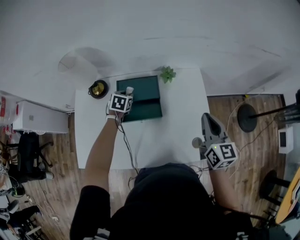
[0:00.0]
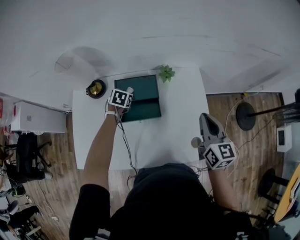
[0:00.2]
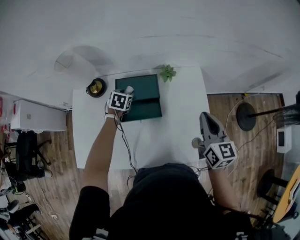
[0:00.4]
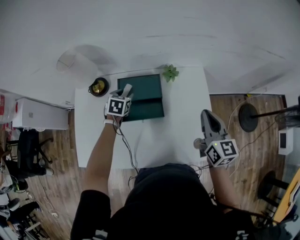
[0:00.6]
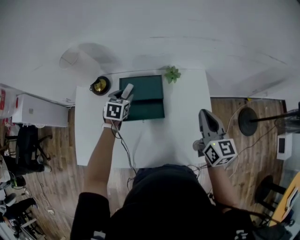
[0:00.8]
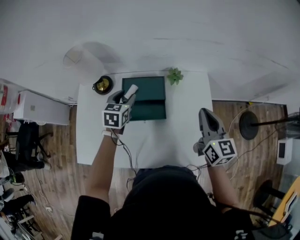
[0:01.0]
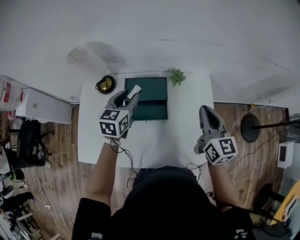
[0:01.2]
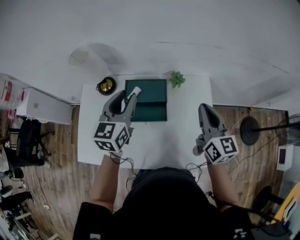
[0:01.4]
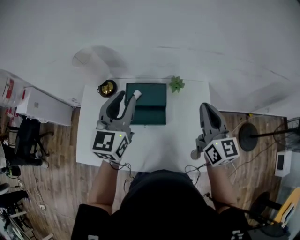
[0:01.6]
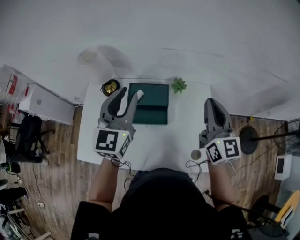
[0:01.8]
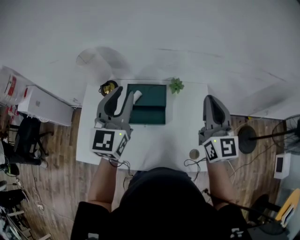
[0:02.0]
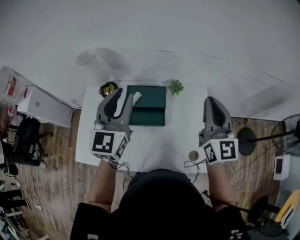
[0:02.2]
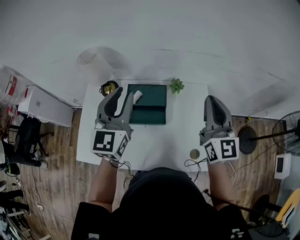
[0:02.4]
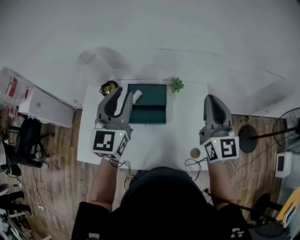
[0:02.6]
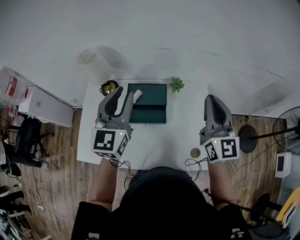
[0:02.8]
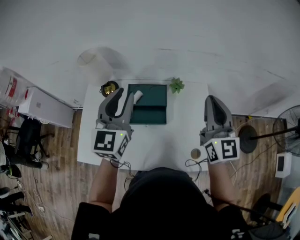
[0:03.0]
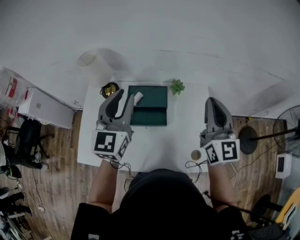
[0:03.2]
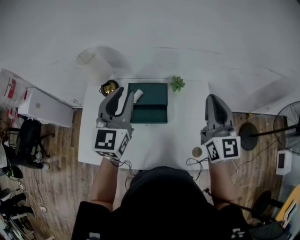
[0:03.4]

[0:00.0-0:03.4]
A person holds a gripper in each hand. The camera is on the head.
0:00.0 to 0:01.6: The right gripper moves upward and forward, roughly 10 cm, while the left gripper goes roughly 30 cm upward, and points its fingers some 50 degrees further upward.
0:01.6 to 0:03.4: The right gripper goes some 5 cm upward.

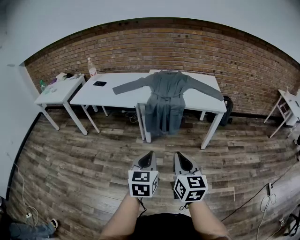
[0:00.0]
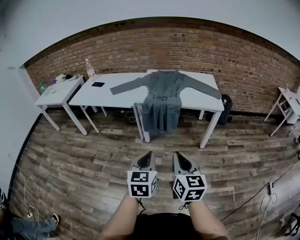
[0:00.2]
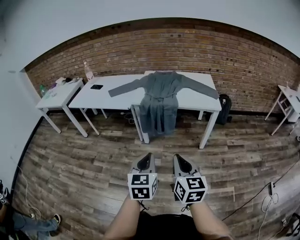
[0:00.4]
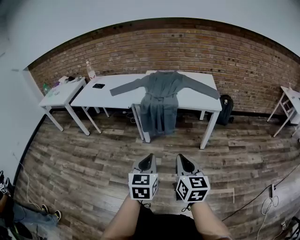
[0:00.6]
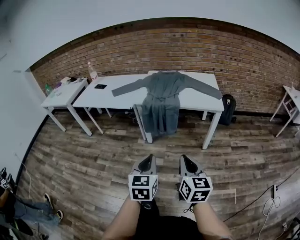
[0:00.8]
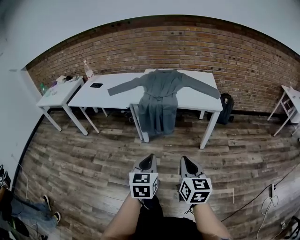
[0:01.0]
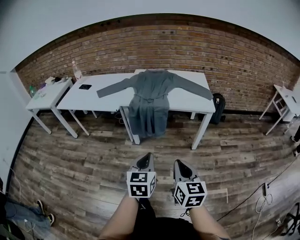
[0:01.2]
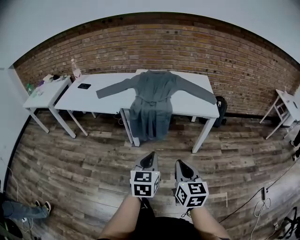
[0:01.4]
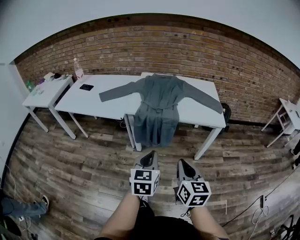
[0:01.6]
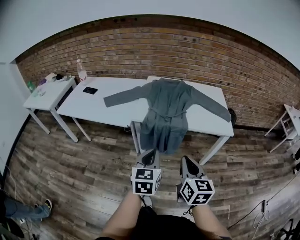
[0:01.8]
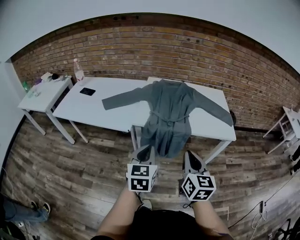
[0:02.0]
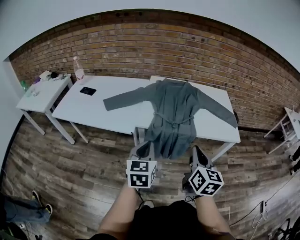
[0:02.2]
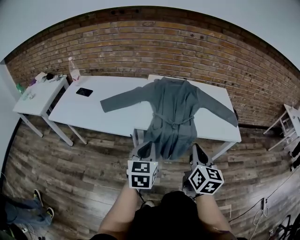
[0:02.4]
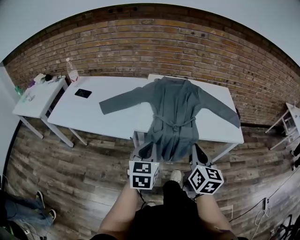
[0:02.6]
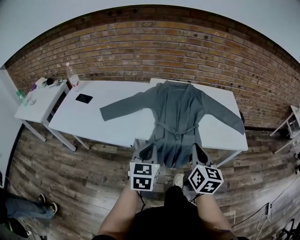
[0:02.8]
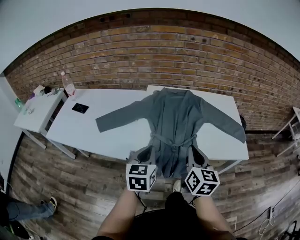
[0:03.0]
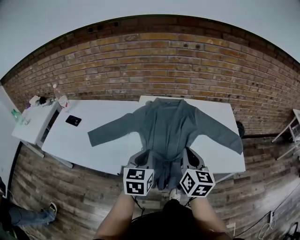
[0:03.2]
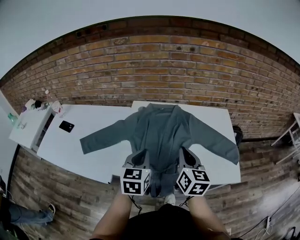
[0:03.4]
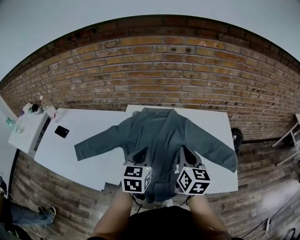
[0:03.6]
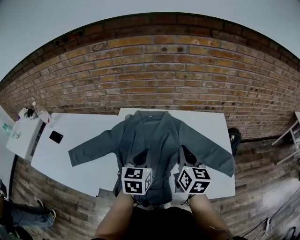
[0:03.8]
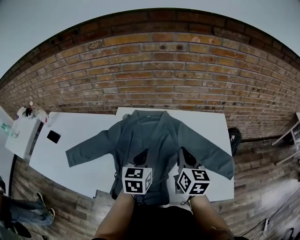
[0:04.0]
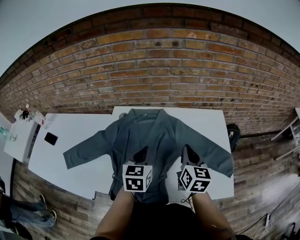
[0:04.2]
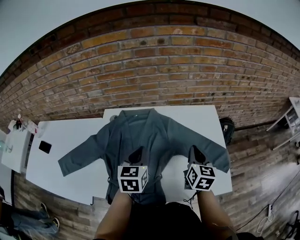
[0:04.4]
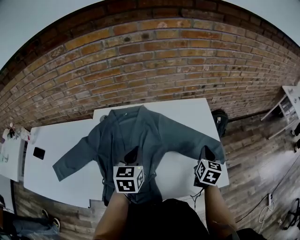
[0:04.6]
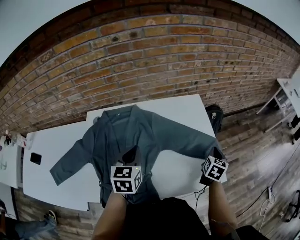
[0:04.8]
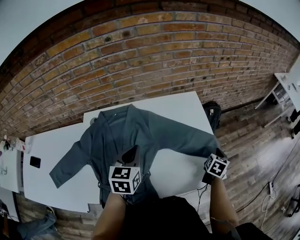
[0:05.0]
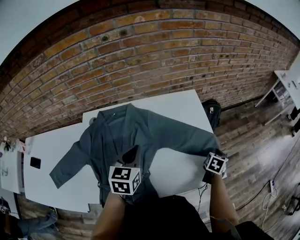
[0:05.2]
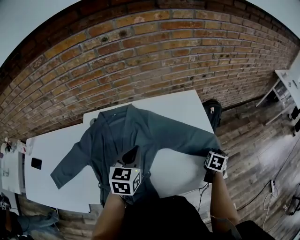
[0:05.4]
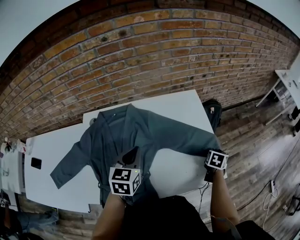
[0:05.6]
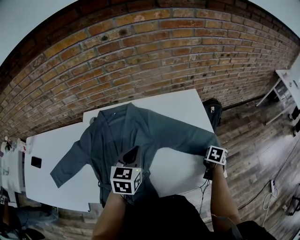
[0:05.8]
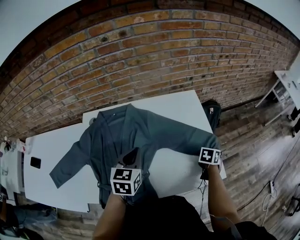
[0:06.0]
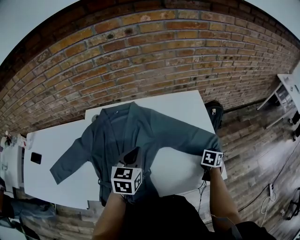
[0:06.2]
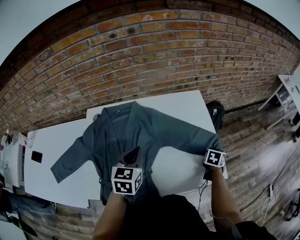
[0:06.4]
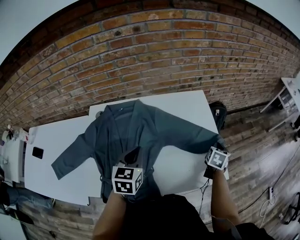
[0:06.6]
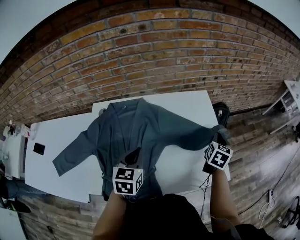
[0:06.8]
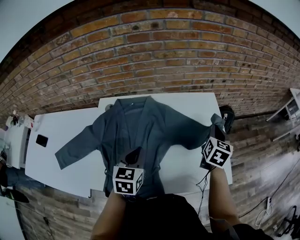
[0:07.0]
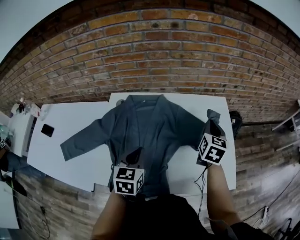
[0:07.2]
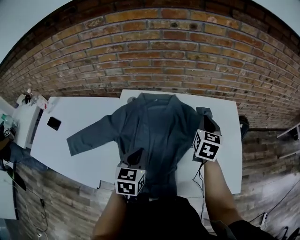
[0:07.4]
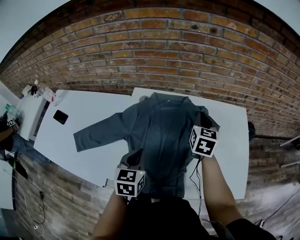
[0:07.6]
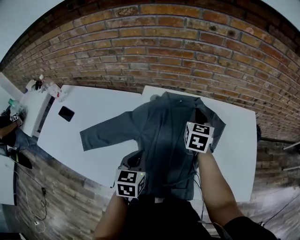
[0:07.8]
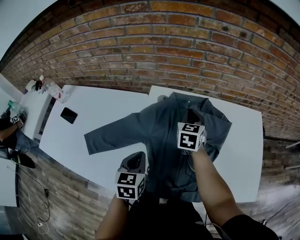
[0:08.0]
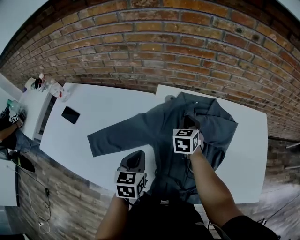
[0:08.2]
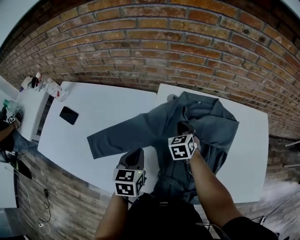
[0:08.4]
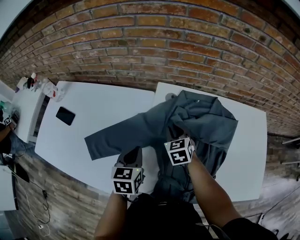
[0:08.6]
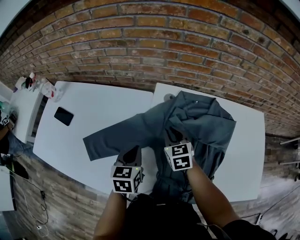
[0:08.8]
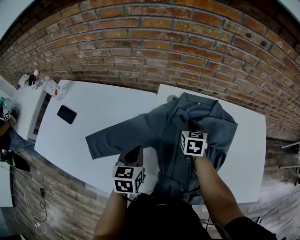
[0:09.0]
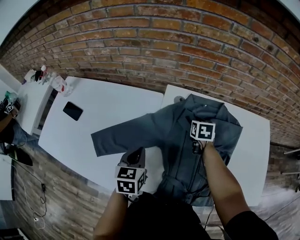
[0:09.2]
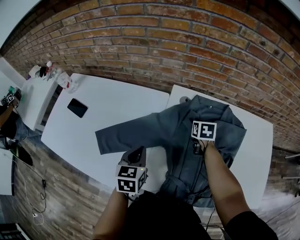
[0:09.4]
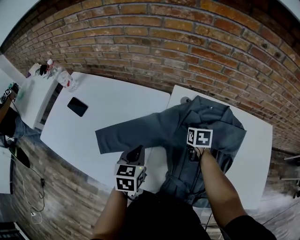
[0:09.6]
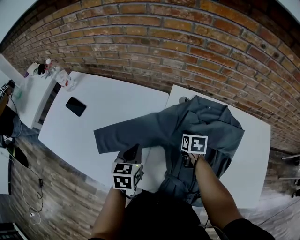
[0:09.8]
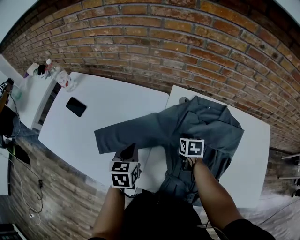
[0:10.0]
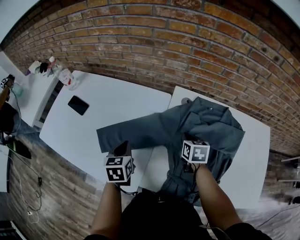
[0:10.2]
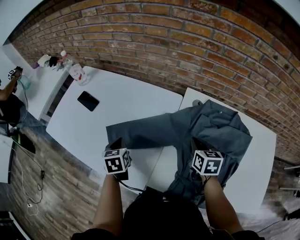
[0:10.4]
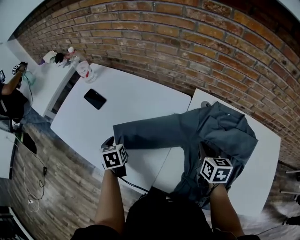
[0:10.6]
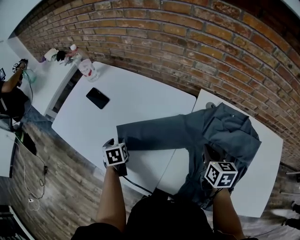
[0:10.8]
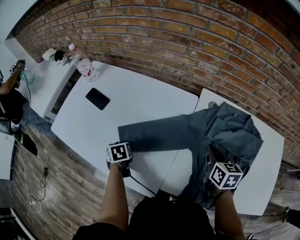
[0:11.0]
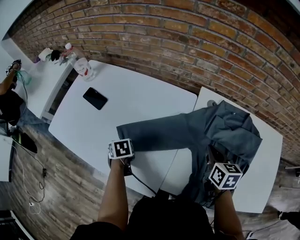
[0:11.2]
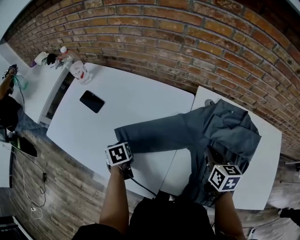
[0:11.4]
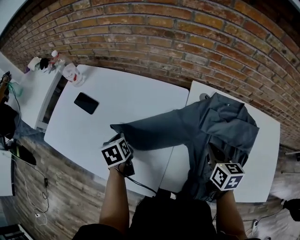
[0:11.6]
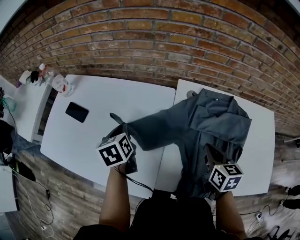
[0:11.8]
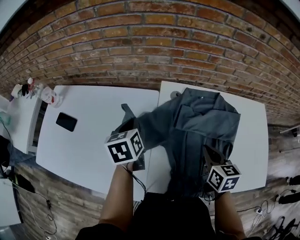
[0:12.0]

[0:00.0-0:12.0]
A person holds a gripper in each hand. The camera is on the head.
0:00.0 to 0:01.6: The left gripper moves forward, about 15 cm. Meanwhile the right gripper goes approximately 15 cm forward and to the right.
0:01.6 to 0:03.0: The right gripper shifts about 35 cm forward. Meanwhile the left gripper shifts about 35 cm forward and to the left.
0:03.0 to 0:04.4: Both grippers move forward and to the right, approximately 35 cm.
0:04.4 to 0:06.0: The right gripper changes place by some 30 cm, tips its fingers downward by roughly 40 degrees, and opens, then closes once more, while the left gripper ends up approximately 5 cm from where it was.
0:06.0 to 0:07.6: The left gripper changes place by approximately 20 cm, and turns by about 20 degrees, while the right gripper shifts by about 40 cm, and angles its fingers upward, by roughly 30 degrees.
0:07.6 to 0:09.0: The right gripper travels to the left and downward by about 25 cm; the left gripper travels to the left by about 20 cm.
0:09.0 to 0:10.4: The left gripper ends up about 20 cm from where it was, and turns by about 30 degrees. Meanwhile the right gripper reaches roughly 5 cm downward, then returns.
0:10.4 to 0:12.0: The left gripper moves to the right, upward and forward, roughly 20 cm, and opens, then closes again. The right gripper goes roughly 10 cm backward, to the right and upward.

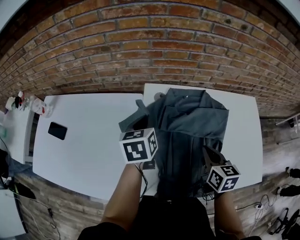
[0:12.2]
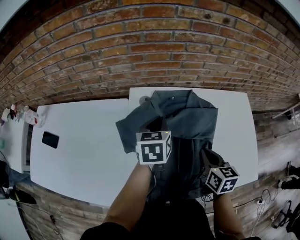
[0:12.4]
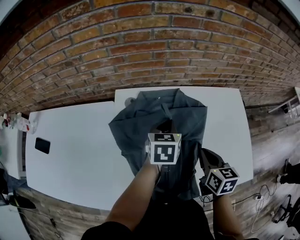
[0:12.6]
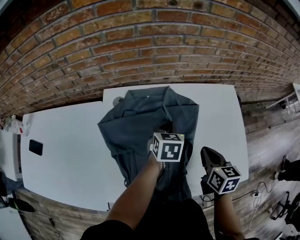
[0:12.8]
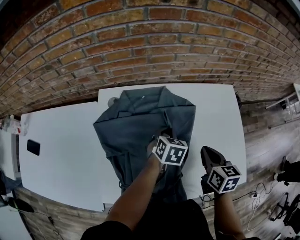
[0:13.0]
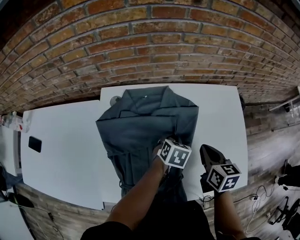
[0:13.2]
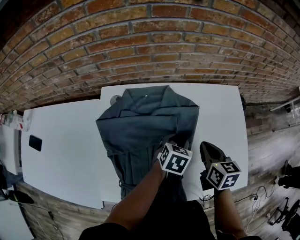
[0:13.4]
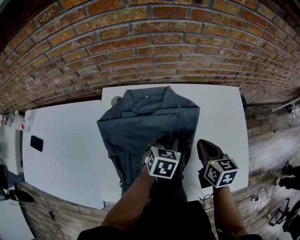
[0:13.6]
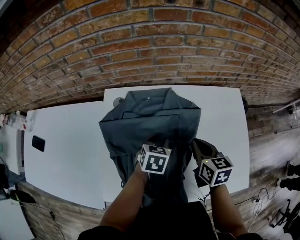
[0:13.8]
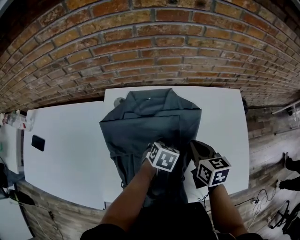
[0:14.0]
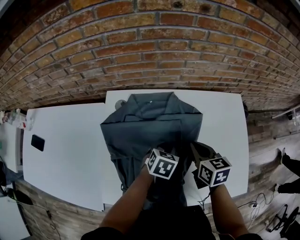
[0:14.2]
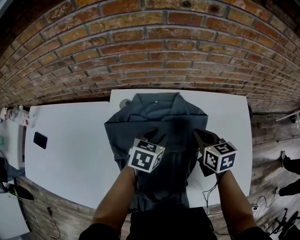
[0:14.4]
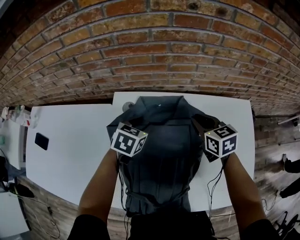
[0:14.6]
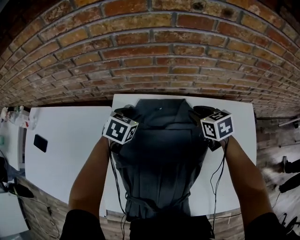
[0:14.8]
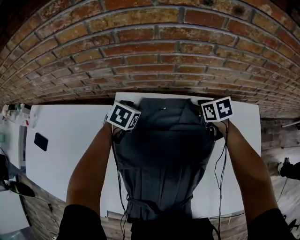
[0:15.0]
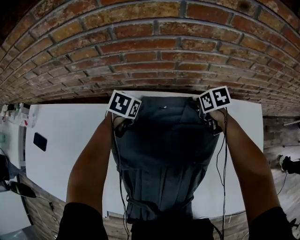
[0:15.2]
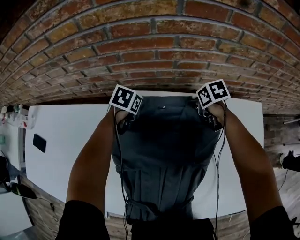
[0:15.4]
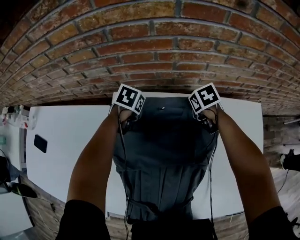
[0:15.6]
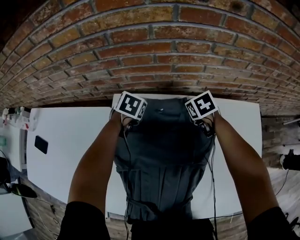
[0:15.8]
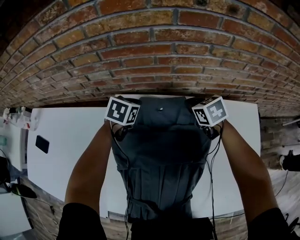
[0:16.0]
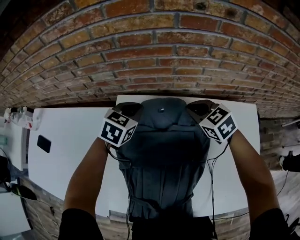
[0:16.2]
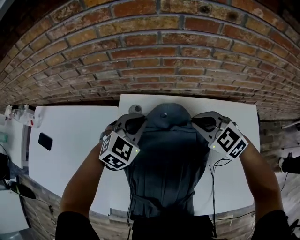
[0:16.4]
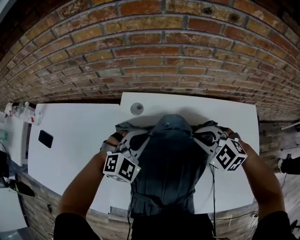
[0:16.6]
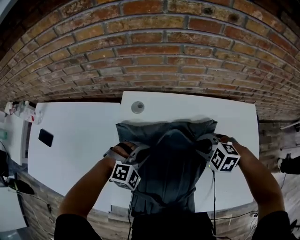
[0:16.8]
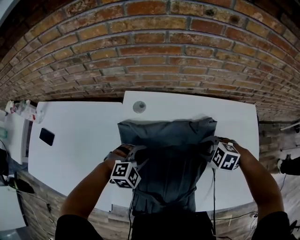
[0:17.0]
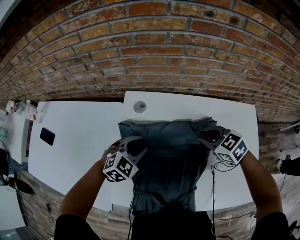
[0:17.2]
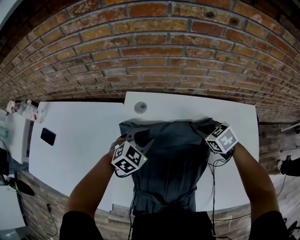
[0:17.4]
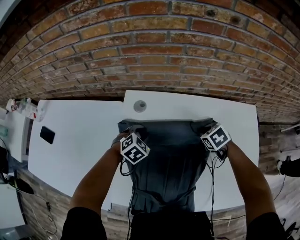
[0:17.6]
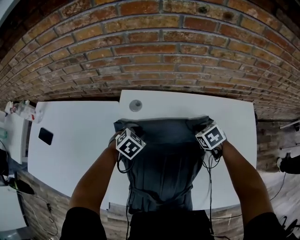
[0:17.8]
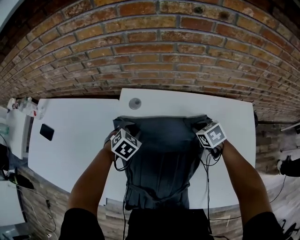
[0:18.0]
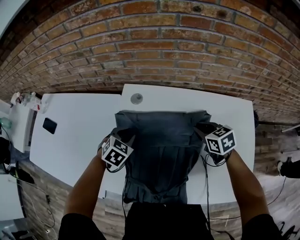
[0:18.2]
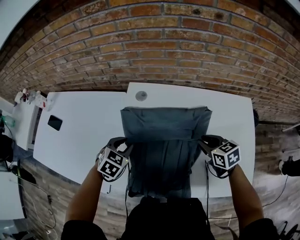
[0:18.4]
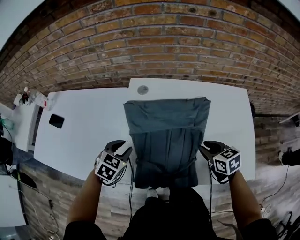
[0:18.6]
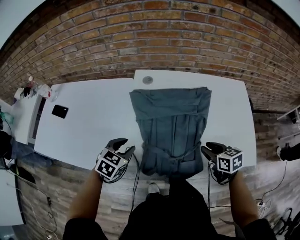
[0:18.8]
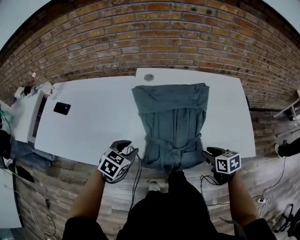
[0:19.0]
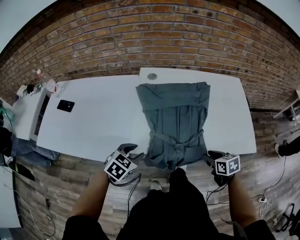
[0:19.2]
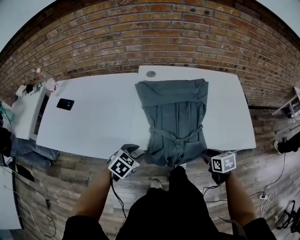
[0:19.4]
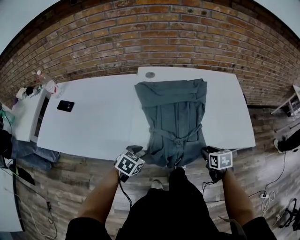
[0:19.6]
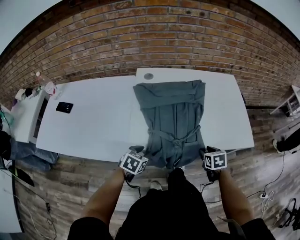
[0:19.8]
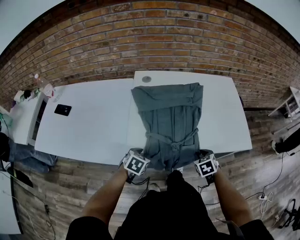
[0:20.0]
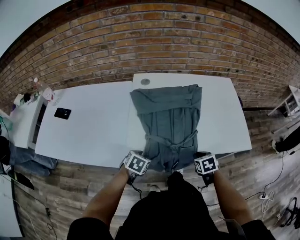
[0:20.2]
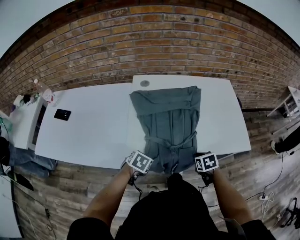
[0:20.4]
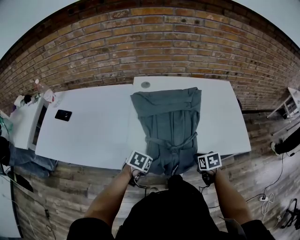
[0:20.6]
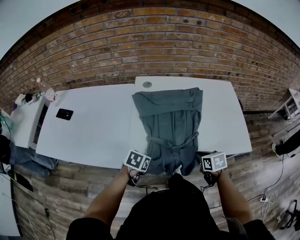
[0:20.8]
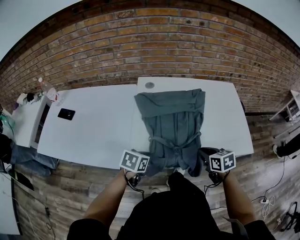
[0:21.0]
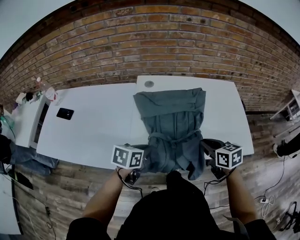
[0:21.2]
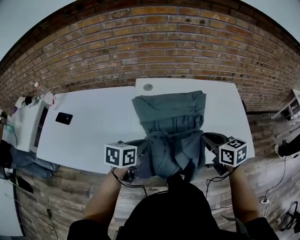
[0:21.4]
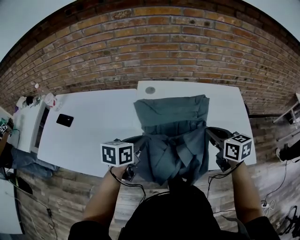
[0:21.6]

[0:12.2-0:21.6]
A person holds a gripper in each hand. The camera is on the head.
0:12.2 to 0:13.8: The left gripper is displaced to the right and downward by approximately 30 cm, rotates about 30 degrees, and opens up. Meanwhile the right gripper goes about 15 cm to the right and forward.
0:13.8 to 0:15.4: The left gripper heads forward and to the left, covering some 25 cm, while the right gripper travels forward and downward by roughly 30 cm, rotates about 40 degrees, and opens up.
0:15.4 to 0:17.0: The grippers both shift backward by about 25 cm. The right gripper rolls counterclockwise, seen from behind, by approximately 60 degrees, and closes and opens again. Meanwhile the left gripper twists about 60 degrees clockwise, seen from behind, and closes, then reopens.
0:17.0 to 0:18.4: The right gripper reaches about 10 cm forward, then returns, and twists roughly 40 degrees clockwise, seen from behind. Meanwhile the left gripper moves to the left, some 10 cm, travels forward and back again, about 10 cm each way, and rolls counterclockwise, seen from behind, by some 40 degrees.
0:18.4 to 0:20.0: The left gripper changes place by some 25 cm. Meanwhile the right gripper changes place by approximately 30 cm, and rotates about 30 degrees.
0:20.0 to 0:21.6: The grippers both shift upward and forward by some 25 cm. The right gripper rotates about 40 degrees; the left gripper rotates some 40 degrees, and closes up.
